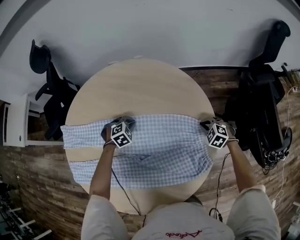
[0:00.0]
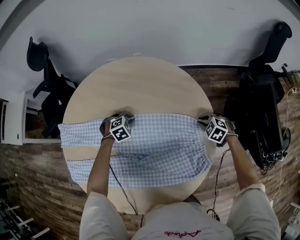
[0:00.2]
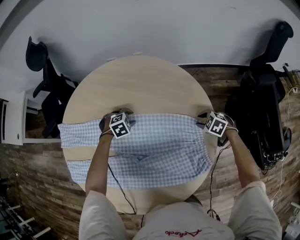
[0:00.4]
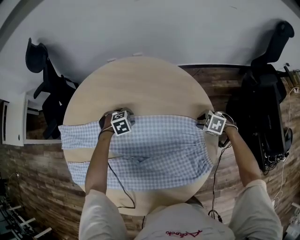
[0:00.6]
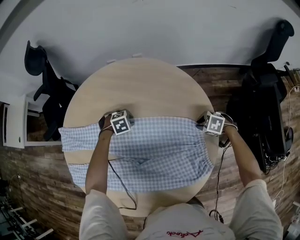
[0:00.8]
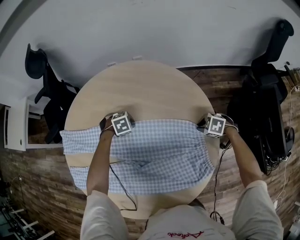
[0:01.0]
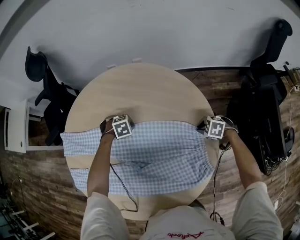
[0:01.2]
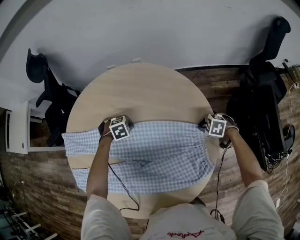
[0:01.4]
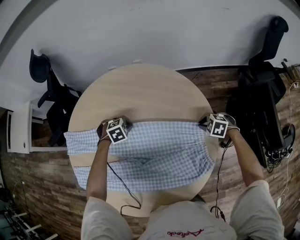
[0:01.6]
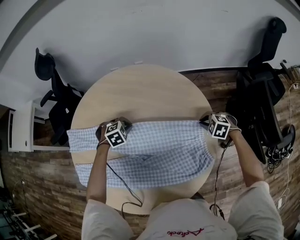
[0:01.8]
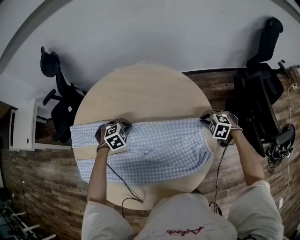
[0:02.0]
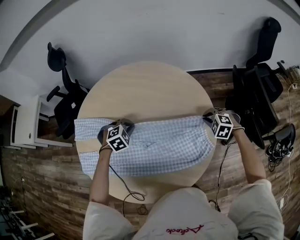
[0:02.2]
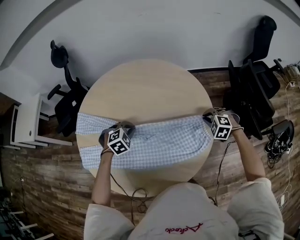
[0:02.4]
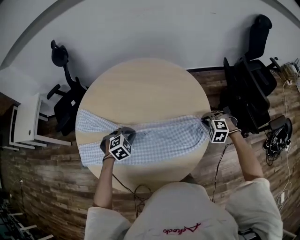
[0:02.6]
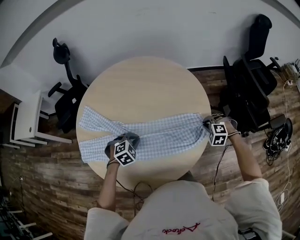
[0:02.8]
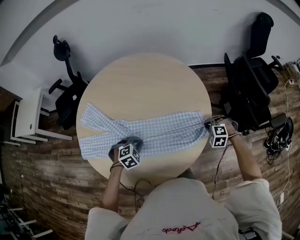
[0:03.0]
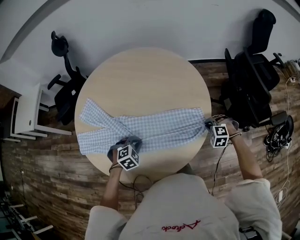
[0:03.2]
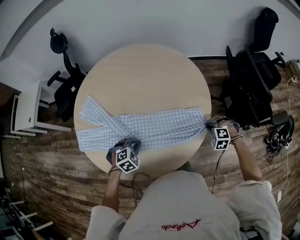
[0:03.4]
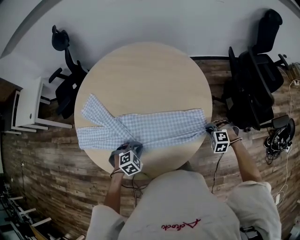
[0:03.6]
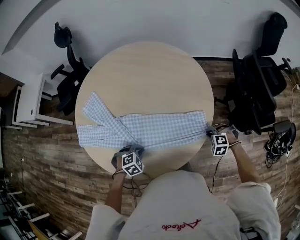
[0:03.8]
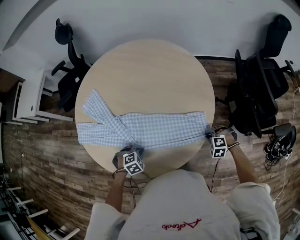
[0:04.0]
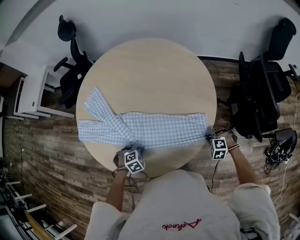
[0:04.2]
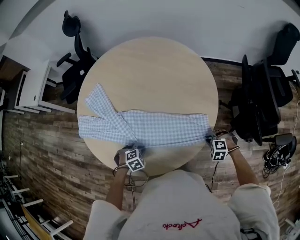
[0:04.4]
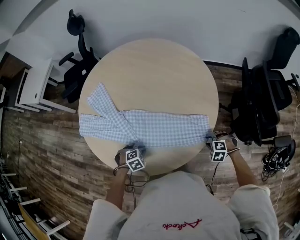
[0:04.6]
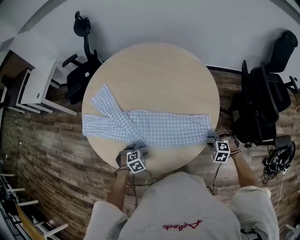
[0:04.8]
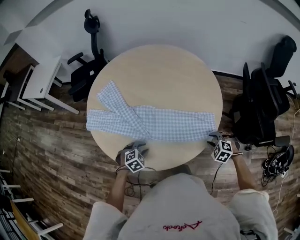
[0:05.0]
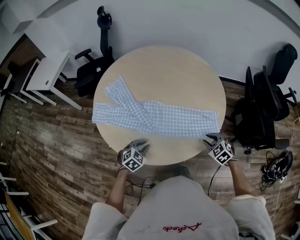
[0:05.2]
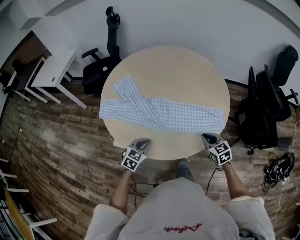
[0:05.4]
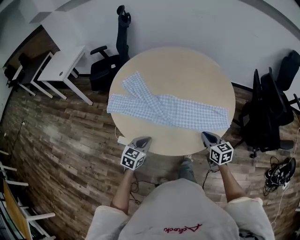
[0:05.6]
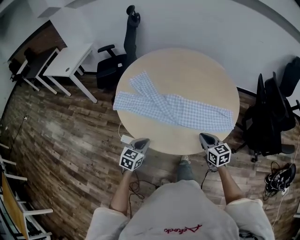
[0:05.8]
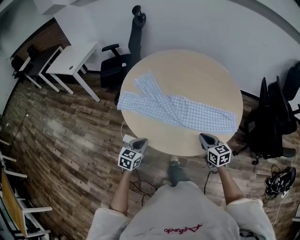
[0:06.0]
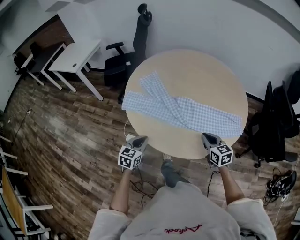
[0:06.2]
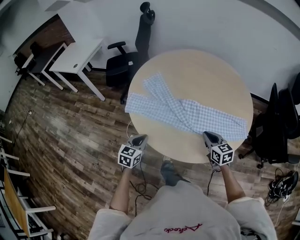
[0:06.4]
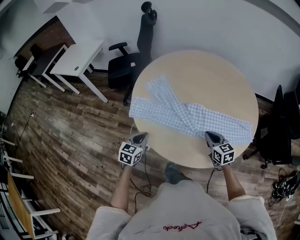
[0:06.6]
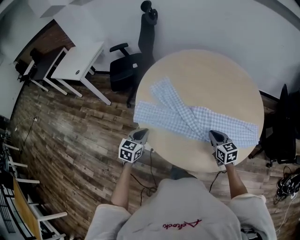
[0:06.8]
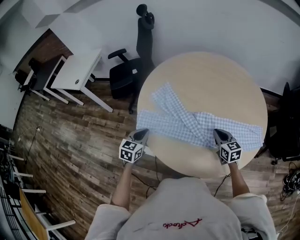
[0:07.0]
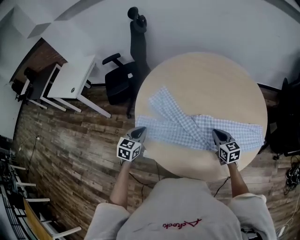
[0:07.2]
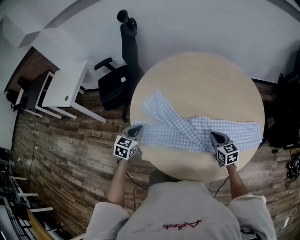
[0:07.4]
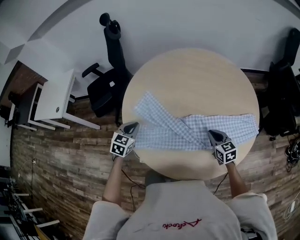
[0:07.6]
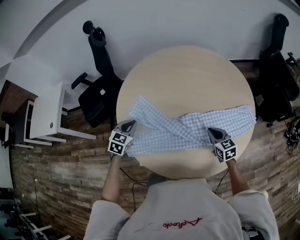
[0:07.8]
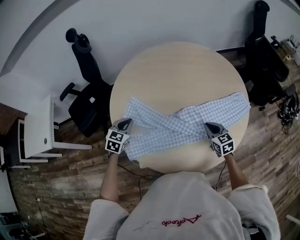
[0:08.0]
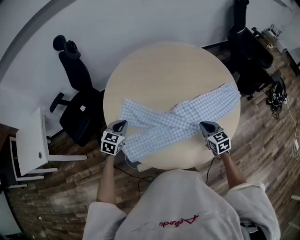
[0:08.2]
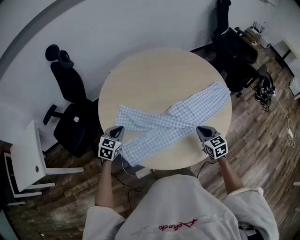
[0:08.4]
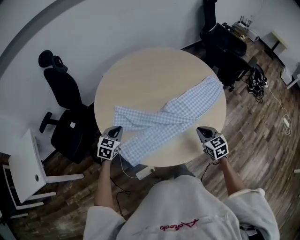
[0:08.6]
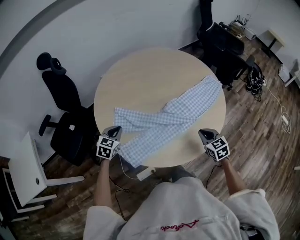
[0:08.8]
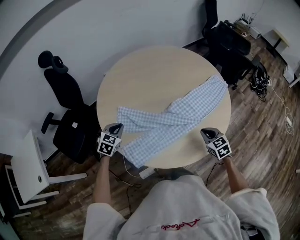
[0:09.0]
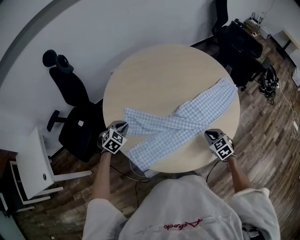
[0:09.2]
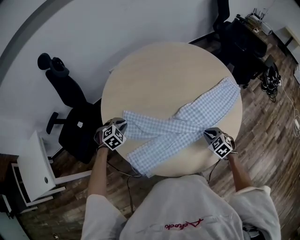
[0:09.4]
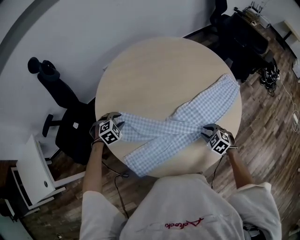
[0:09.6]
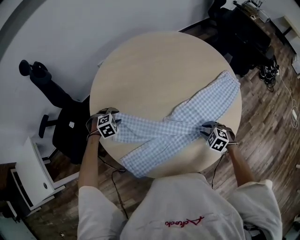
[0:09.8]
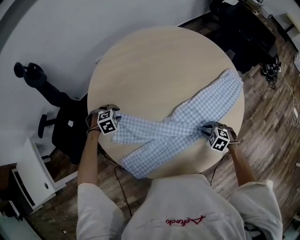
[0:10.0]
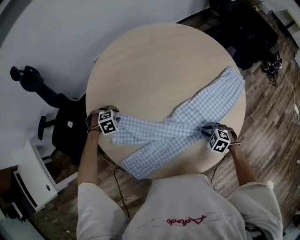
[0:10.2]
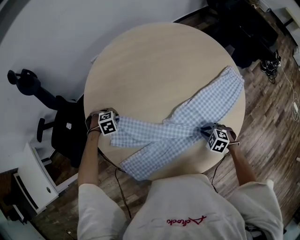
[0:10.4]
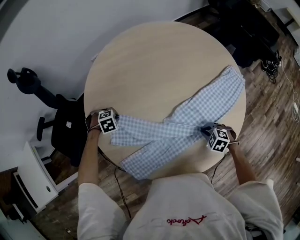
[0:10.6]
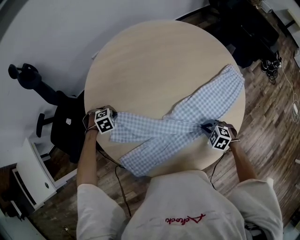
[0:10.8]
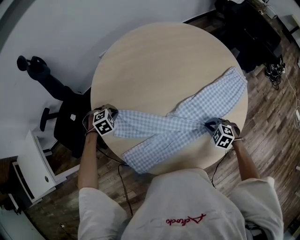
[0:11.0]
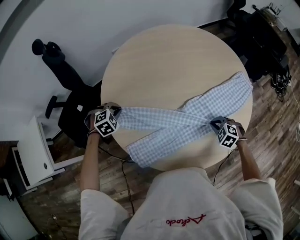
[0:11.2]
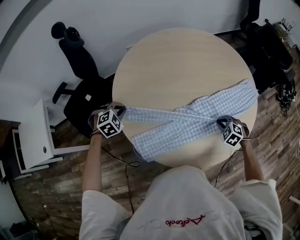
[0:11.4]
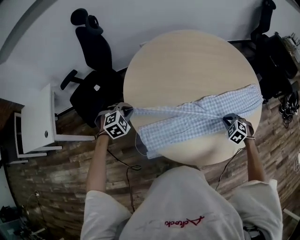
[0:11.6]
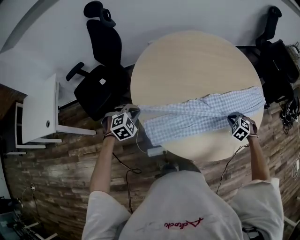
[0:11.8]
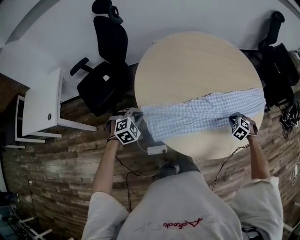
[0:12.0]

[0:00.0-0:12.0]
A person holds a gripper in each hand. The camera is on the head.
0:00.0 to 0:01.6: The left gripper opens, then closes again, while the right gripper opens, then closes again.
0:01.6 to 0:03.0: The right gripper reaches approximately 10 cm upward, then returns, and swivels roughly 30 degrees. Meanwhile the left gripper changes place by approximately 30 cm.
0:03.0 to 0:04.4: Both grippers move downward, roughly 10 cm.
0:04.4 to 0:06.0: The left gripper ends up roughly 25 cm from where it was, points its fingers some 50 degrees further upward, and opens, then closes again. The right gripper moves about 35 cm, tilts its fingers roughly 50 degrees upward, and opens and closes again.
0:06.0 to 0:07.6: The right gripper goes about 20 cm forward and to the left; the left gripper goes about 35 cm forward and to the left, and turns by approximately 20 degrees.
0:07.6 to 0:09.0: The left gripper changes place by some 10 cm, and turns by approximately 30 degrees. Meanwhile the right gripper shifts by roughly 15 cm, and rotates roughly 30 degrees.
0:09.0 to 0:10.4: The two grippers go approximately 15 cm downward. The left gripper points its fingers about 50 degrees further downward. The right gripper swivels roughly 40 degrees.
0:10.4 to 0:12.0: The right gripper shifts roughly 5 cm upward, and turns by some 30 degrees; the left gripper moves approximately 30 cm, and points its fingers some 30 degrees further upward.

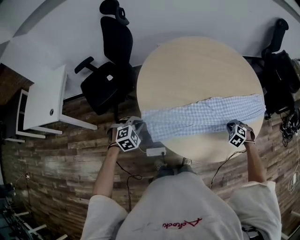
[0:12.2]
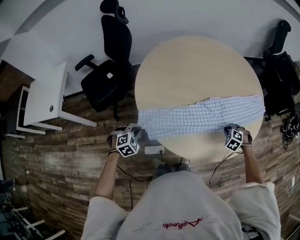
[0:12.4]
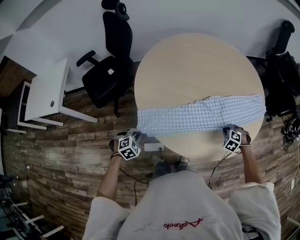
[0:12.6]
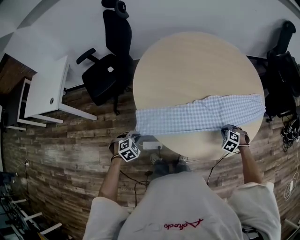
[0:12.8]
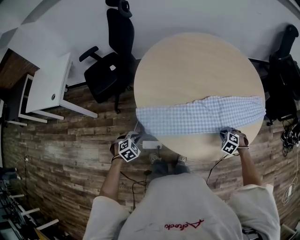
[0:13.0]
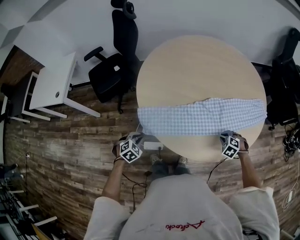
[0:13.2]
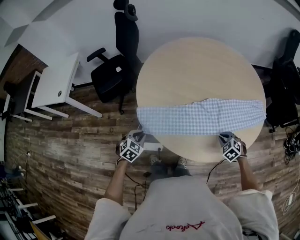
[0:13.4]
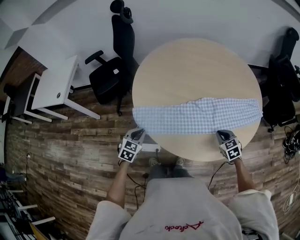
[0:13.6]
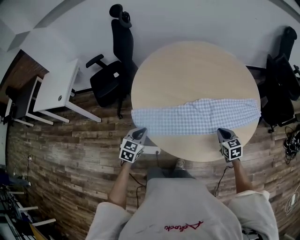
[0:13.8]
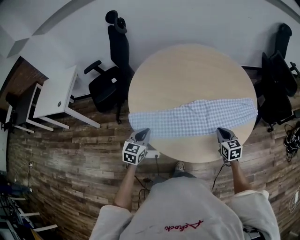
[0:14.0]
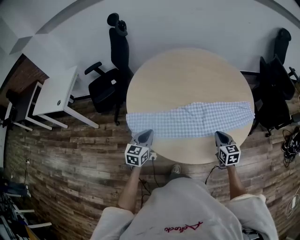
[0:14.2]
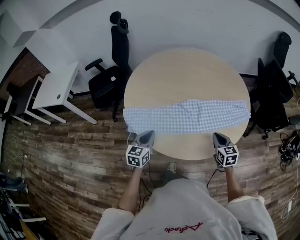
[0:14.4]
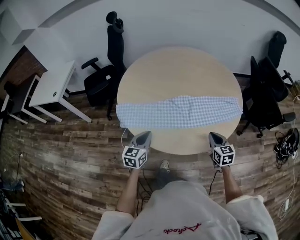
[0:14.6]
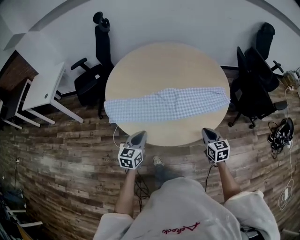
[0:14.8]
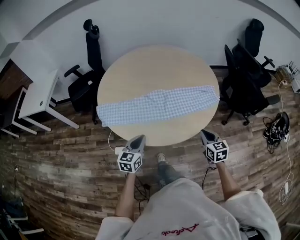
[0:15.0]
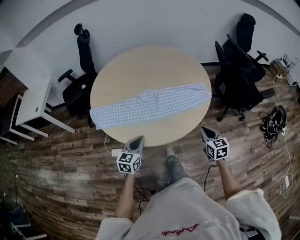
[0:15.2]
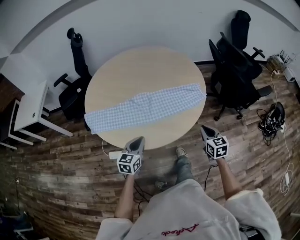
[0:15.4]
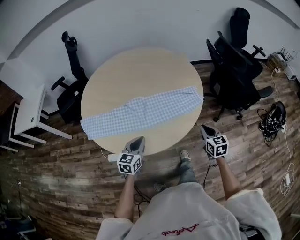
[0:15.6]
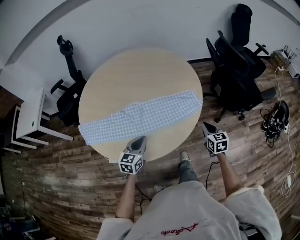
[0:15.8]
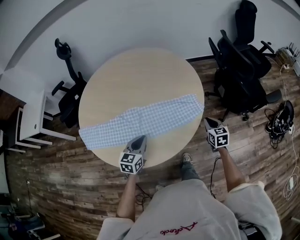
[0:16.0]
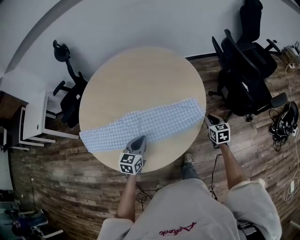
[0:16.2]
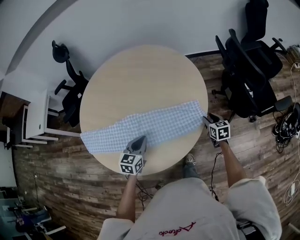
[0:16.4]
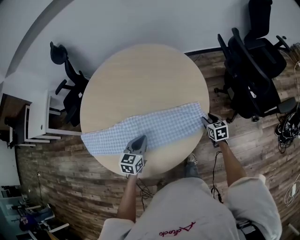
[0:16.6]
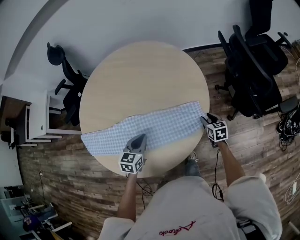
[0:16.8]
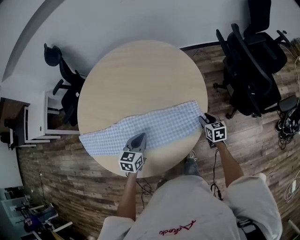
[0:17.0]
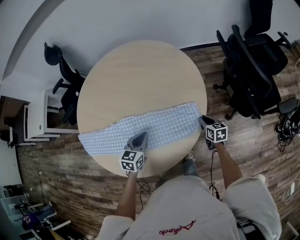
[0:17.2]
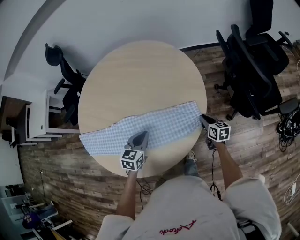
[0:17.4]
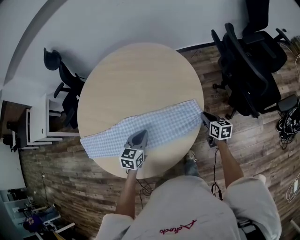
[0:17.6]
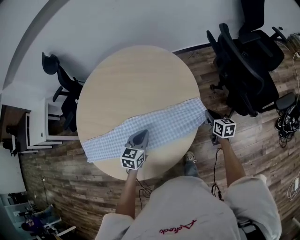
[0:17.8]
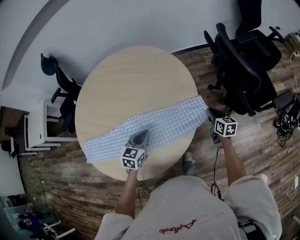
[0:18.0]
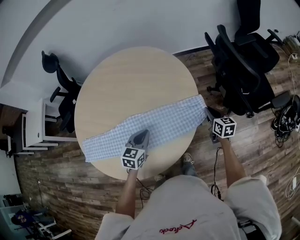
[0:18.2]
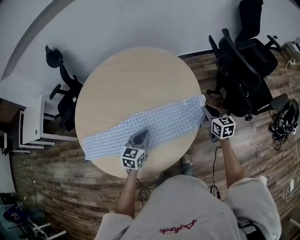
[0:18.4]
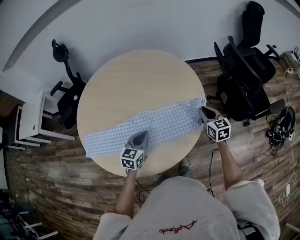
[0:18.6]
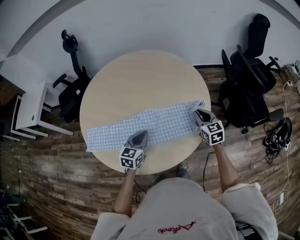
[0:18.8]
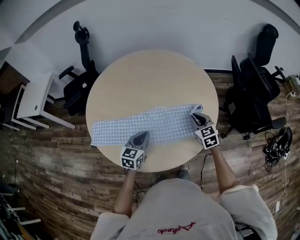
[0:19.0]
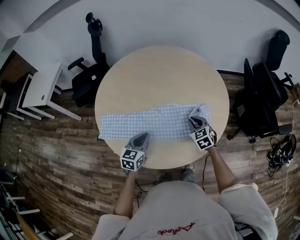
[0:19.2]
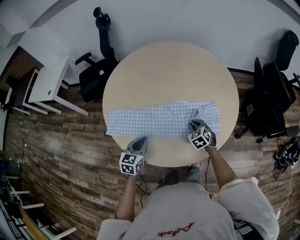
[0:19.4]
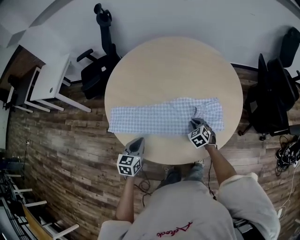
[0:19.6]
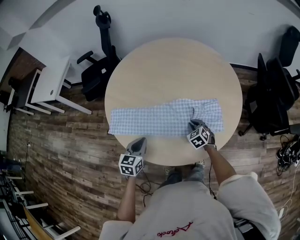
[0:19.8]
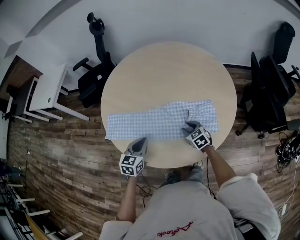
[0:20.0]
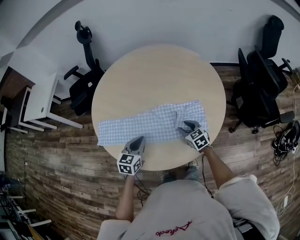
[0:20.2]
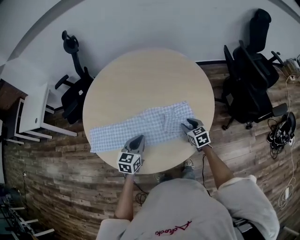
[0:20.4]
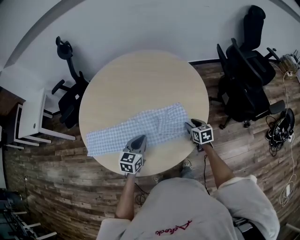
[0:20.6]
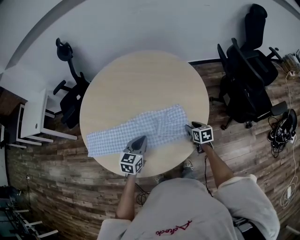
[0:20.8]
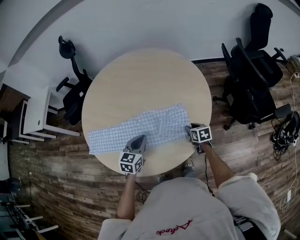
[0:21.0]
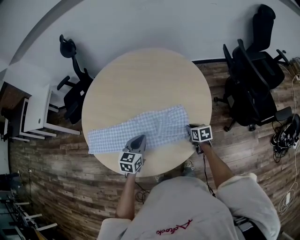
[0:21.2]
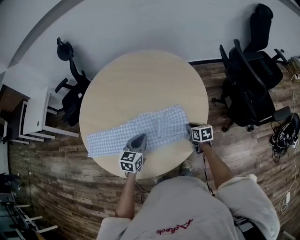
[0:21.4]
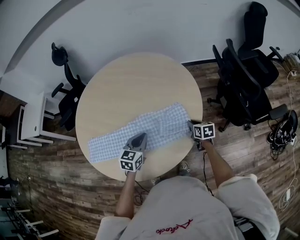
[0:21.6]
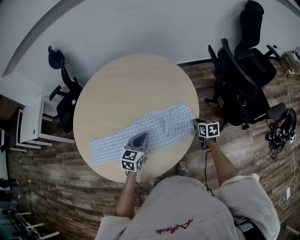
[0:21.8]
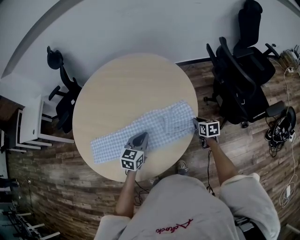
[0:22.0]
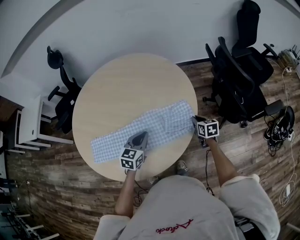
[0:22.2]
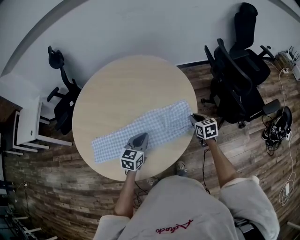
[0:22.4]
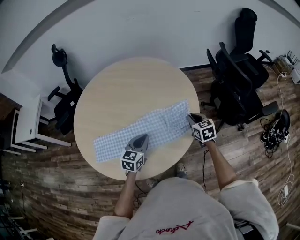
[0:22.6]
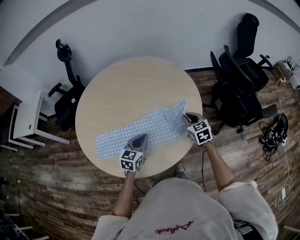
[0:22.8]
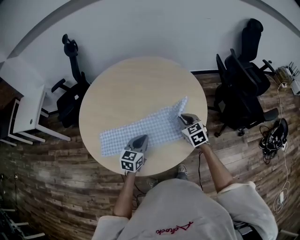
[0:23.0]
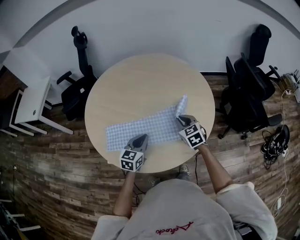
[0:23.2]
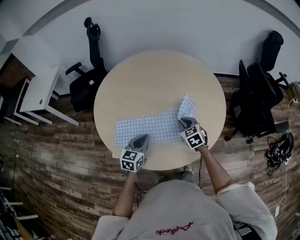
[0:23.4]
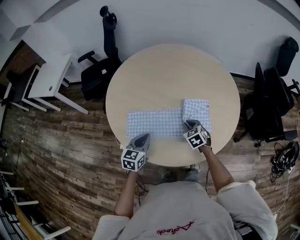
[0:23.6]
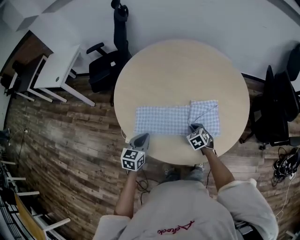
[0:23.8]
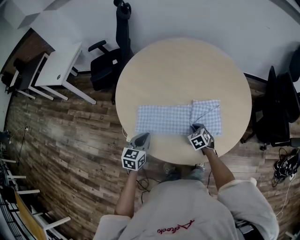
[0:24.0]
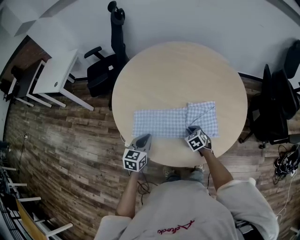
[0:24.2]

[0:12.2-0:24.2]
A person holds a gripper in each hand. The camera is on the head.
0:12.2 to 0:13.8: The left gripper moves to the right and backward, roughly 15 cm, and rolls counterclockwise, seen from behind, by some 40 degrees, while the right gripper shifts about 5 cm upward, and tilts its fingers some 30 degrees upward.
0:13.8 to 0:15.2: Both grippers move to the right and backward, roughly 30 cm. The left gripper changes its angle by some 20 degrees.
0:15.2 to 0:16.6: The right gripper goes approximately 40 cm forward, to the right and downward, and opens; the left gripper moves forward and to the right, approximately 30 cm.
0:16.6 to 0:18.2: The left gripper goes approximately 5 cm to the right; the right gripper travels upward and to the right by some 10 cm, and closes up.
0:18.2 to 0:19.8: The left gripper shifts some 30 cm to the left and backward, and changes its angle by approximately 20 degrees; the right gripper shifts roughly 40 cm to the left, and rolls counterclockwise, seen from behind, by roughly 50 degrees.
0:19.8 to 0:21.2: The right gripper travels to the right by about 20 cm, twists some 50 degrees clockwise, seen from behind, and opens, then closes once more. The left gripper moves to the right and forward, roughly 20 cm.
0:21.2 to 0:22.6: The right gripper shifts approximately 15 cm upward and to the right, and turns by some 20 degrees; the left gripper shifts about 5 cm to the right.
0:22.6 to 0:24.2: The left gripper shifts some 25 cm to the left; the right gripper moves to the left and downward, some 35 cm, and rotates some 30 degrees.
